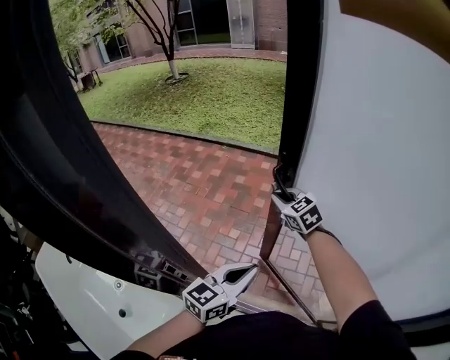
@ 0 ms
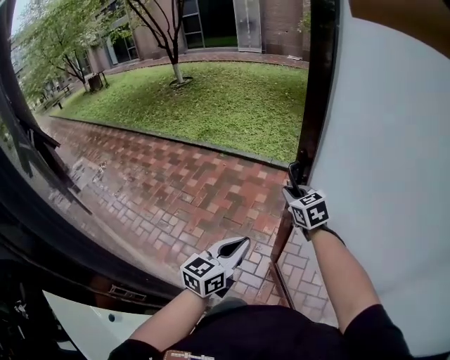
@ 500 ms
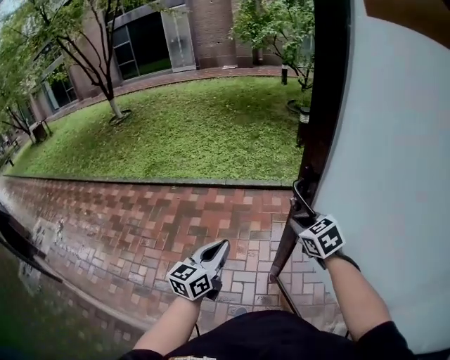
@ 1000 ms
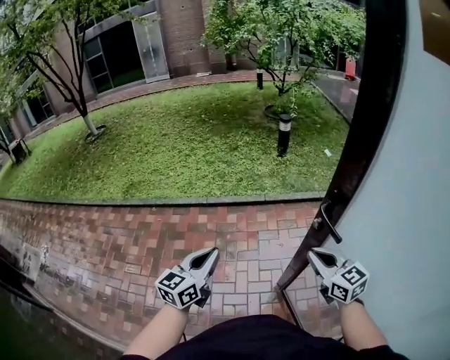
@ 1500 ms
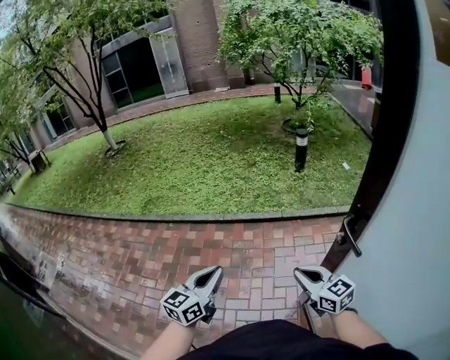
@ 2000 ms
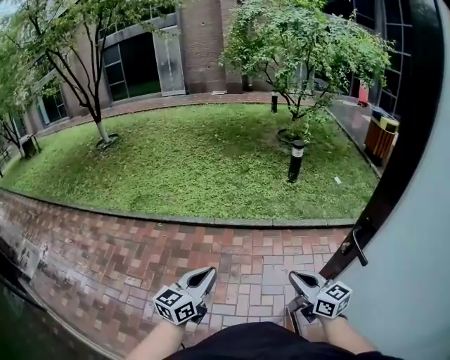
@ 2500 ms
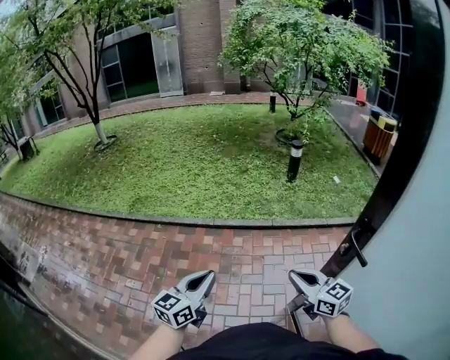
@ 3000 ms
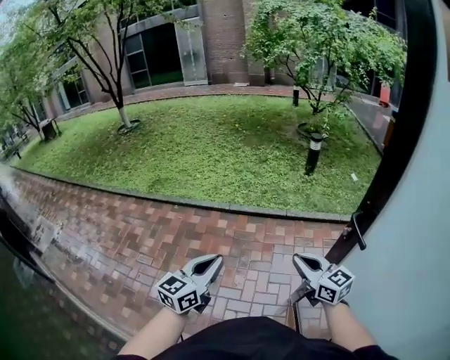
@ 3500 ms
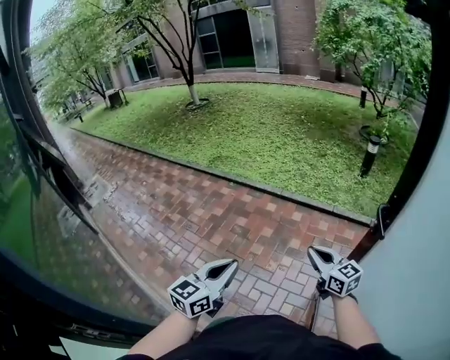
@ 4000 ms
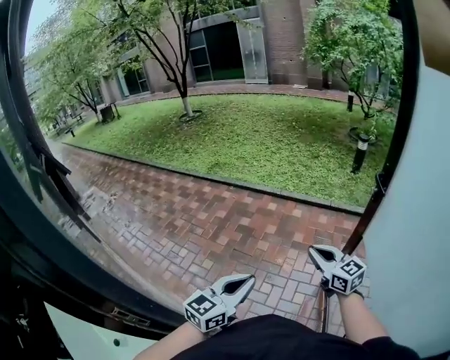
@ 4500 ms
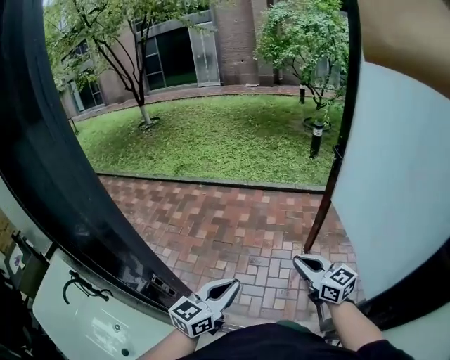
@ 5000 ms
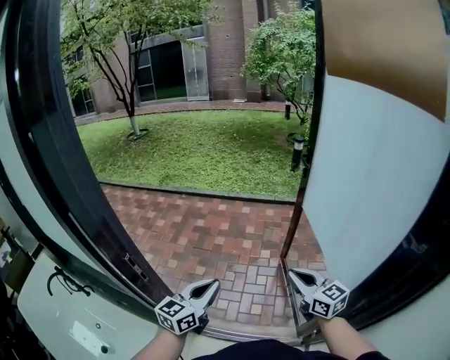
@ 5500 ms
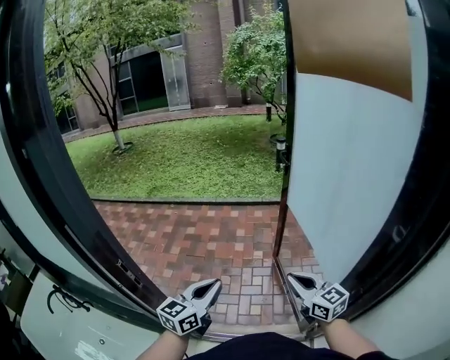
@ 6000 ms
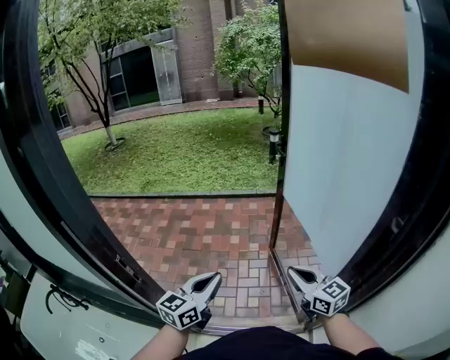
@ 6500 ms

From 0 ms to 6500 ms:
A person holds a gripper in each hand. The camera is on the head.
From 0 ms to 2000 ms: The right gripper shifts approximately 40 cm to the right and forward, and turns by roughly 30 degrees. The left gripper shifts roughly 60 cm forward.
From 2000 ms to 4500 ms: The left gripper shifts about 40 cm backward, while the right gripper moves backward and to the left, some 25 cm.
From 4500 ms to 6500 ms: The left gripper moves backward, approximately 25 cm, while the right gripper heads backward, covering some 40 cm, and turns by approximately 20 degrees.

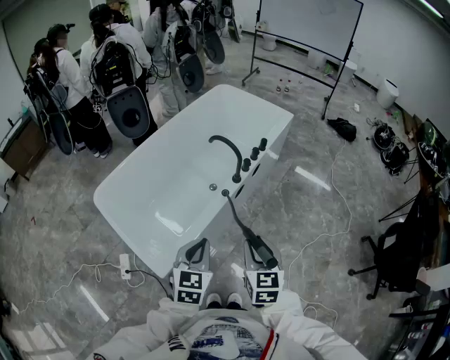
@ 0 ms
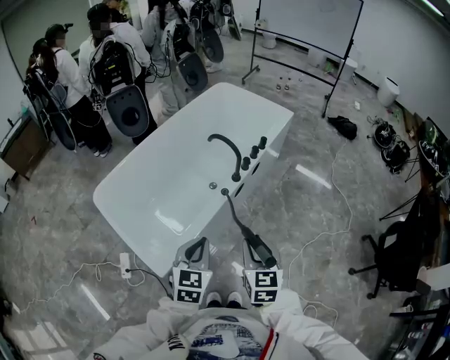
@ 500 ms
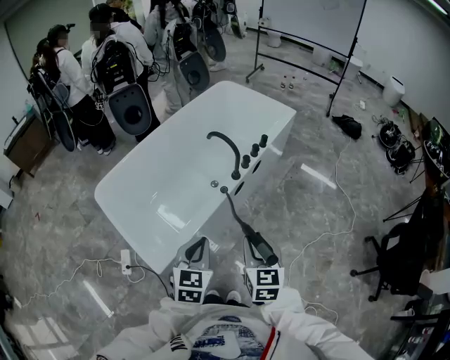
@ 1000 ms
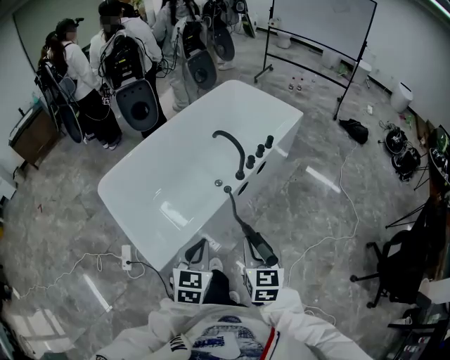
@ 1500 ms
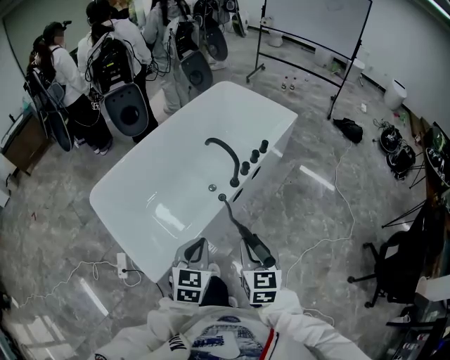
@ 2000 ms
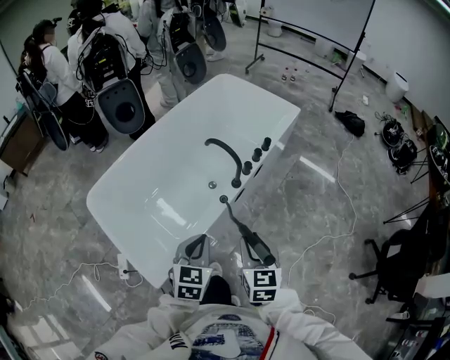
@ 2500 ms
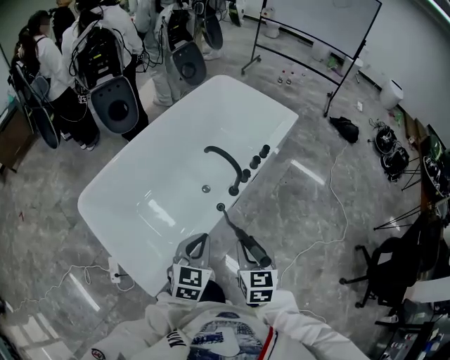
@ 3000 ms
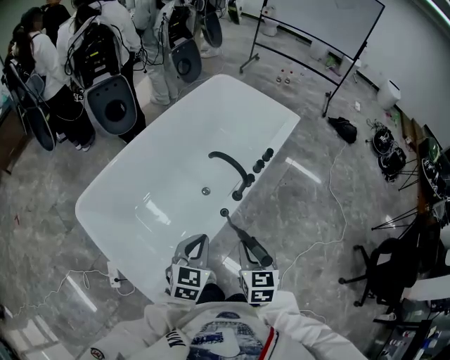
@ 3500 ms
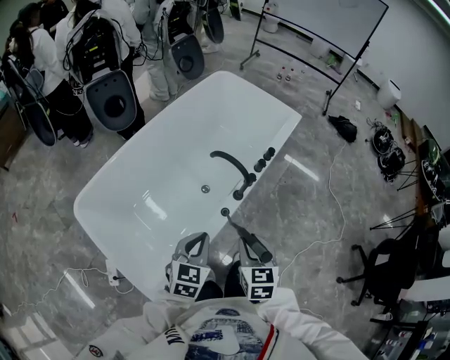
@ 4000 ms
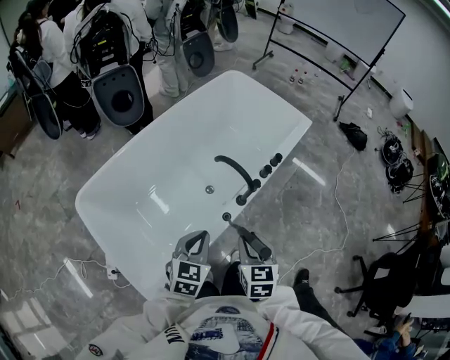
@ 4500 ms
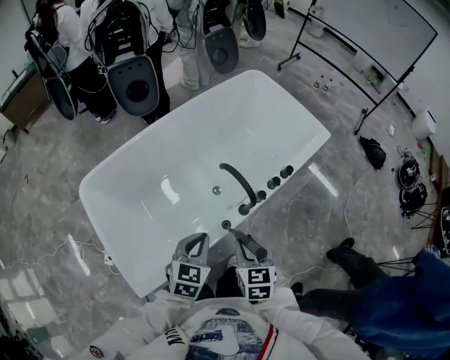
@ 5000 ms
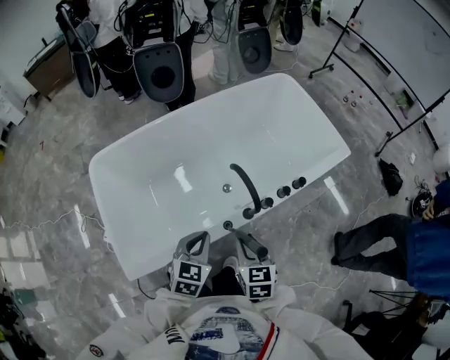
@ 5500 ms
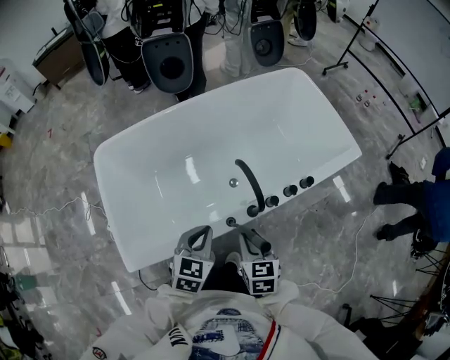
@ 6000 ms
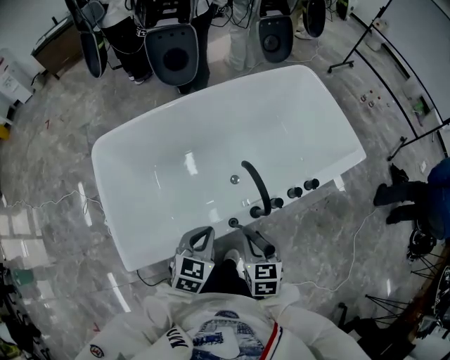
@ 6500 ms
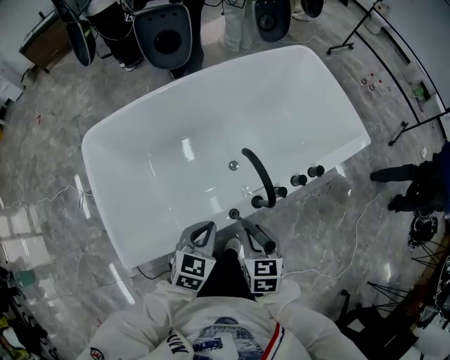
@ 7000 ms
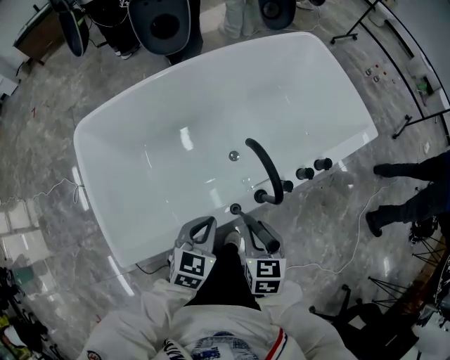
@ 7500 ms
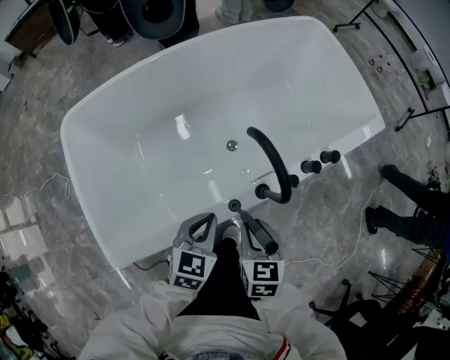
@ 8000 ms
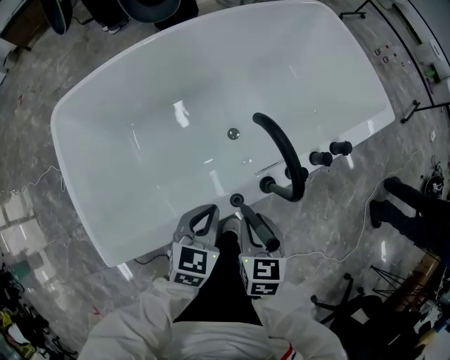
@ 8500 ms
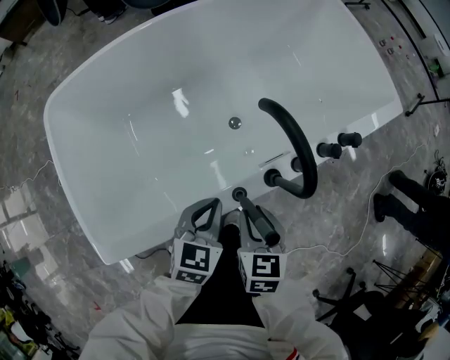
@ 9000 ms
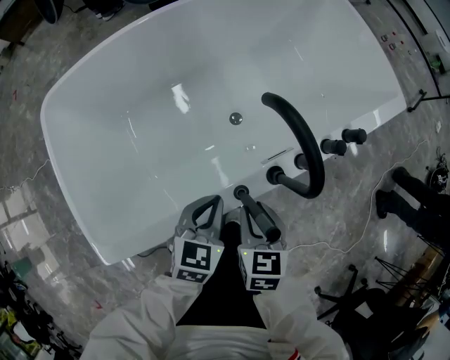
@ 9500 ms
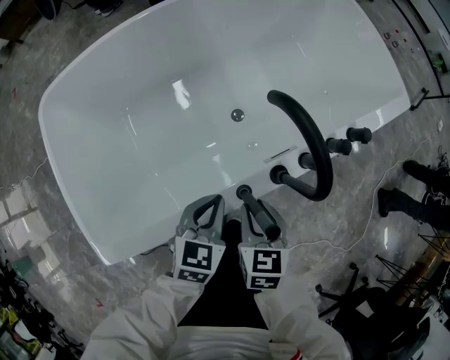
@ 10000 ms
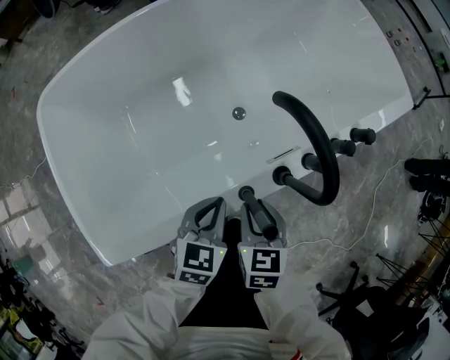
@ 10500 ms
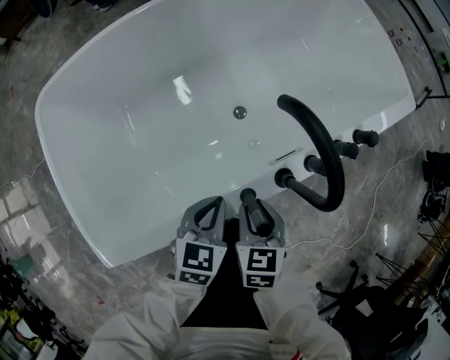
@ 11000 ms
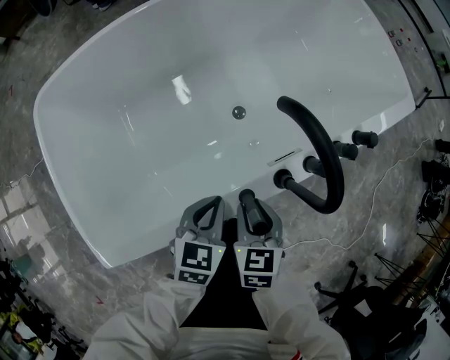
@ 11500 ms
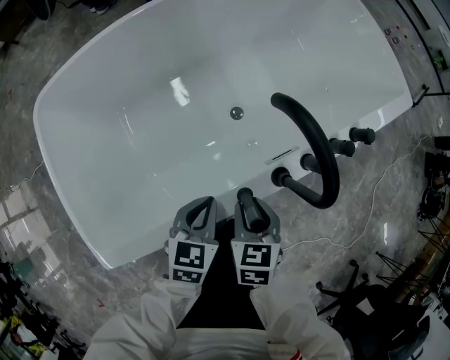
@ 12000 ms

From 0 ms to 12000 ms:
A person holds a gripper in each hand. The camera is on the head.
From 0 ms to 2000 ms: Both grippers travel together forward, some 5 cm.
From 2000 ms to 4000 ms: The left gripper is displaced forward by roughly 15 cm. Meanwhile the right gripper heads forward, to the left and downward, covering roughly 15 cm.
From 4000 ms to 6000 ms: The left gripper ends up roughly 10 cm from where it was, and swivels some 30 degrees. The right gripper moves roughly 15 cm, and changes its angle by approximately 30 degrees.
From 6000 ms to 8000 ms: The two grippers go some 10 cm downward.
From 8000 ms to 10000 ms: Both grippers move downward, about 10 cm.
From 10000 ms to 12000 ms: The grippers move only a little.

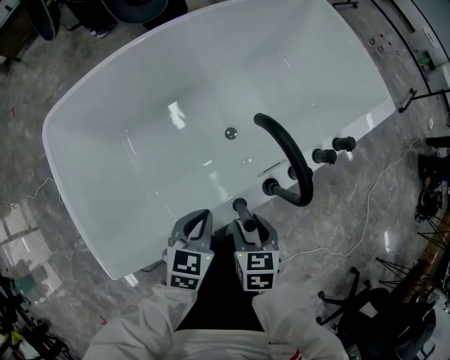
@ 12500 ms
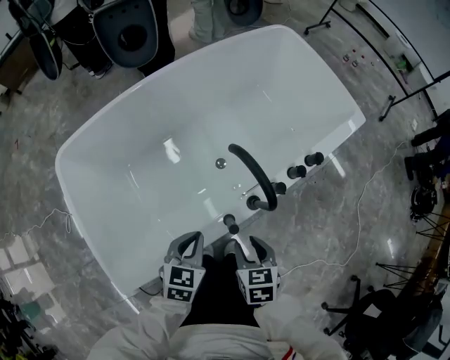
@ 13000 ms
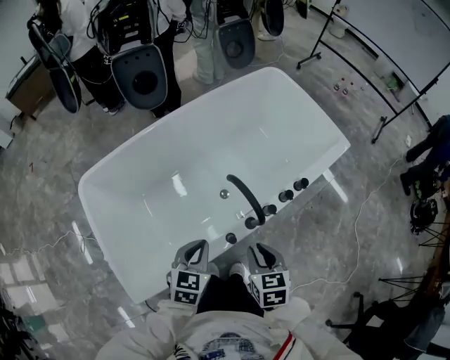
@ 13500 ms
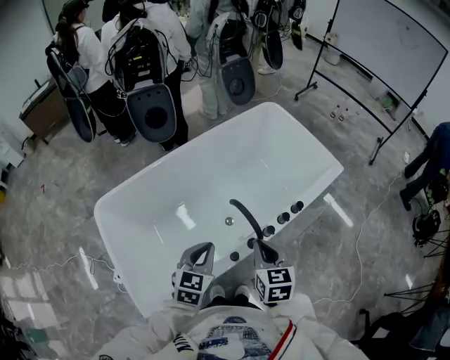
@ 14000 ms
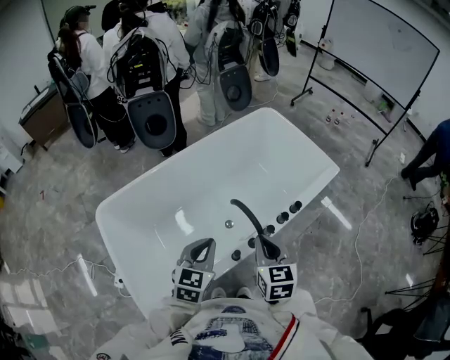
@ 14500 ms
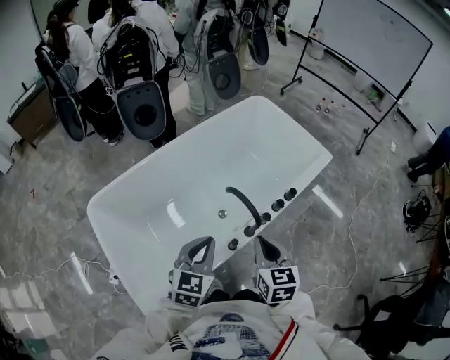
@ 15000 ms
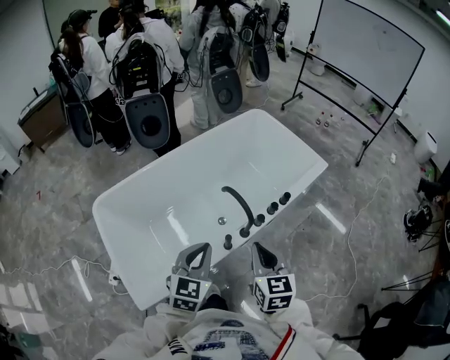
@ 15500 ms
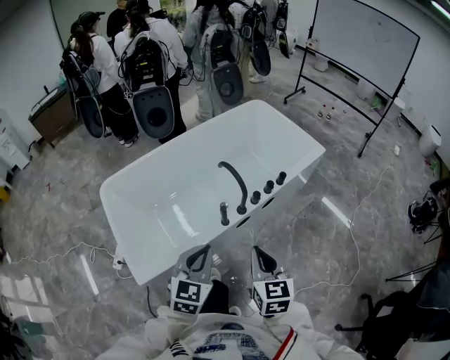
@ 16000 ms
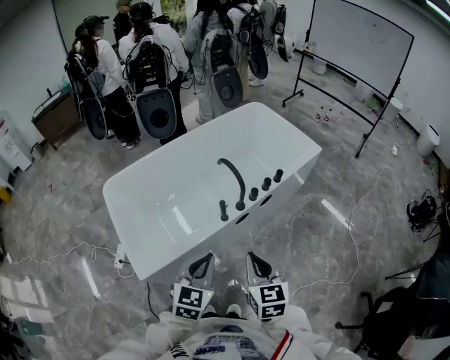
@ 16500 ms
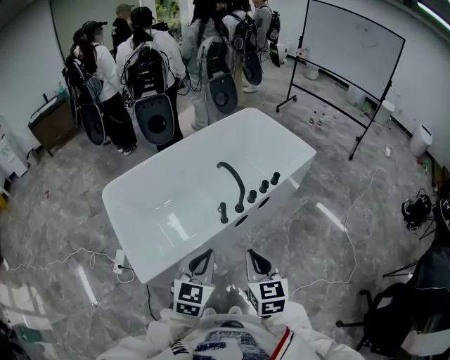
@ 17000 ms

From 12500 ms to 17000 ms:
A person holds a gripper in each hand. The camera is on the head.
From 12500 ms to 14500 ms: Both grippers move upward, some 30 cm. The left gripper turns by some 20 degrees. Meanwhile the right gripper swivels about 30 degrees, and closes up.
From 14500 ms to 17000 ms: Both grippers travel together backward, roughly 30 cm.

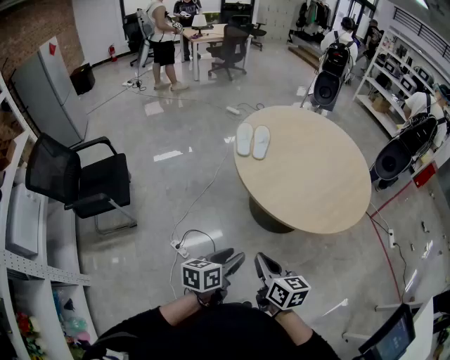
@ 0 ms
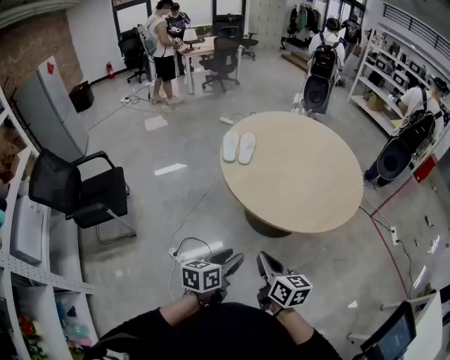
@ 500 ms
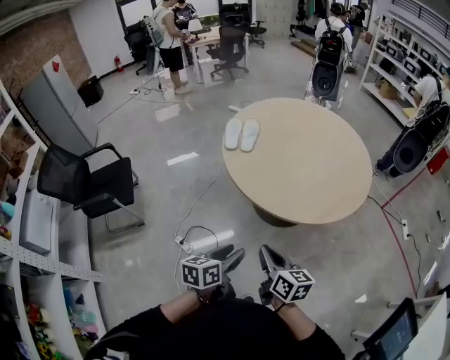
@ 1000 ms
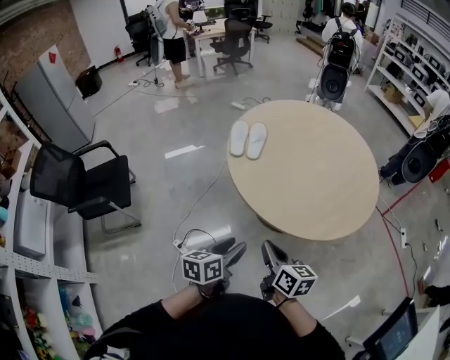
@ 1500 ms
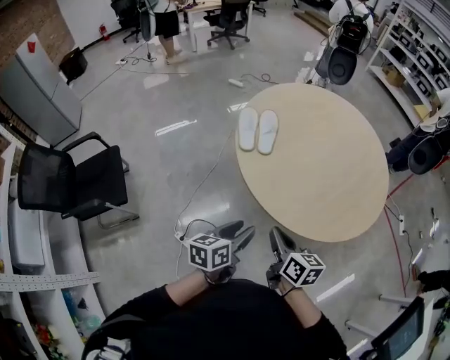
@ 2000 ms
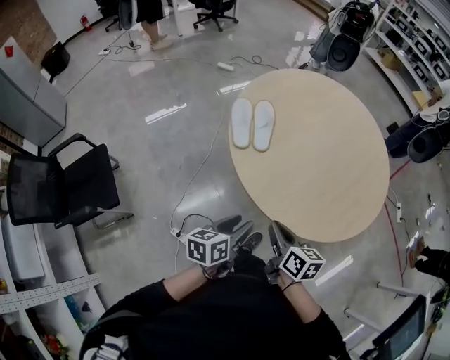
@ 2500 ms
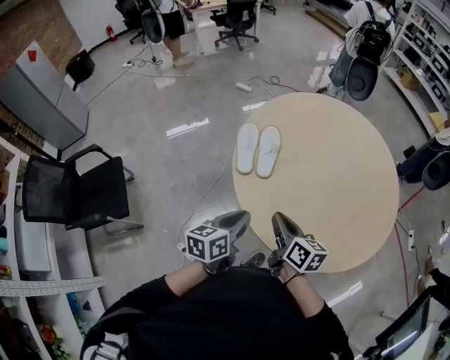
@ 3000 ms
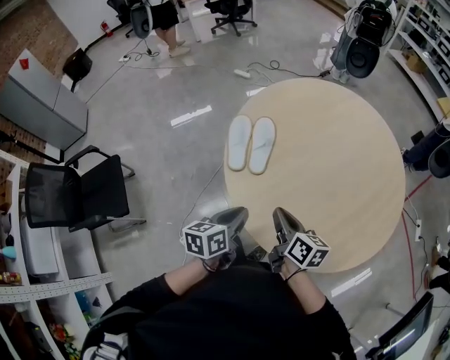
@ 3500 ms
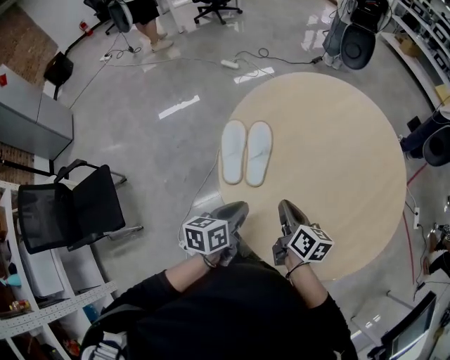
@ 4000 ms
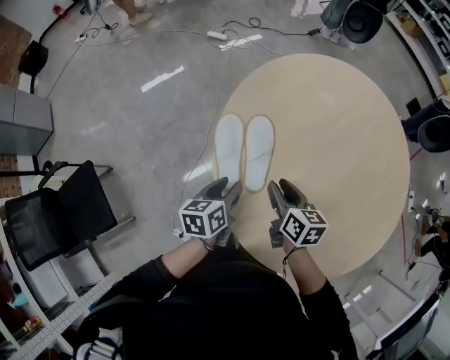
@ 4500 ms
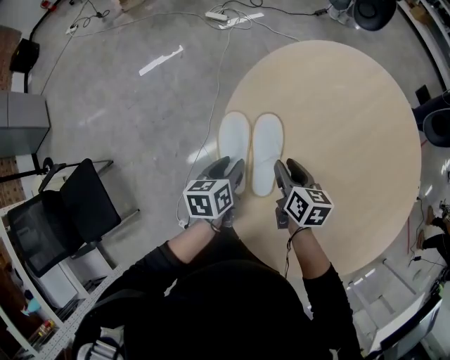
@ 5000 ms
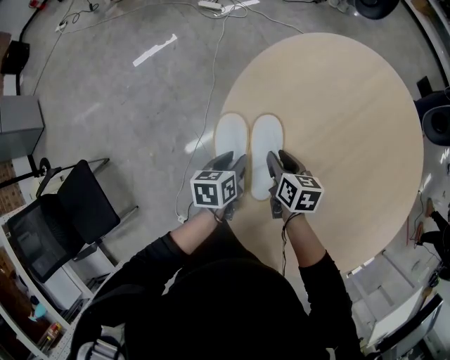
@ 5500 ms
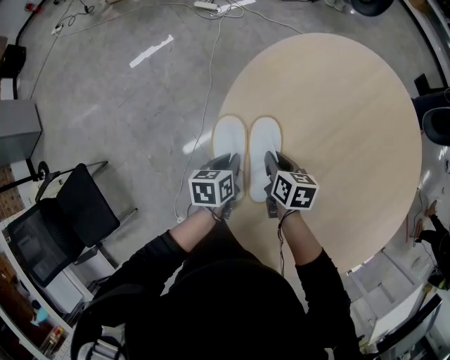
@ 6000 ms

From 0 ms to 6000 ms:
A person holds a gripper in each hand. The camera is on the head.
From 0 ms to 2000 ms: The two grippers go roughly 20 cm forward.
From 2000 ms to 4000 ms: Both grippers move forward, approximately 35 cm. The left gripper closes its fingers.
From 4000 ms to 6000 ms: The right gripper travels forward, downward and to the left by approximately 35 cm, and changes its angle by about 20 degrees. Meanwhile the left gripper shifts approximately 35 cm forward and downward, and opens, then closes again.
